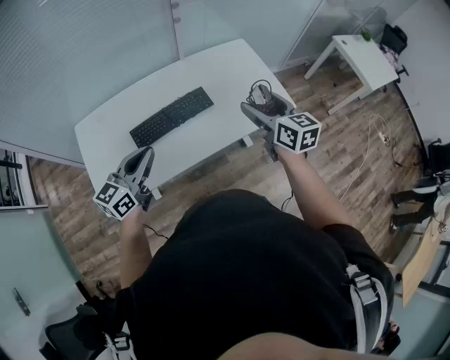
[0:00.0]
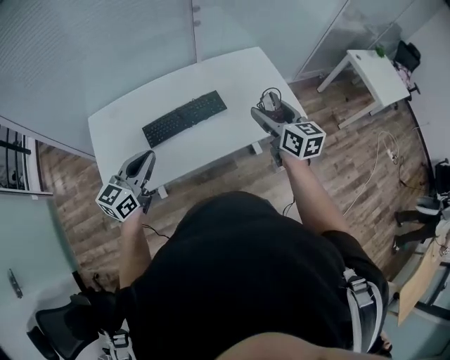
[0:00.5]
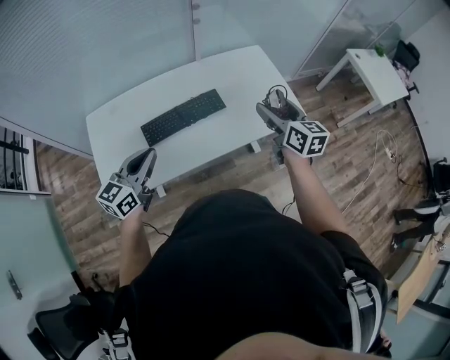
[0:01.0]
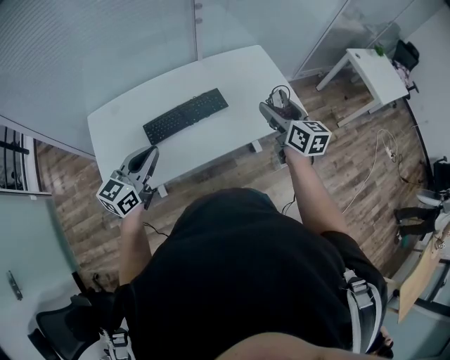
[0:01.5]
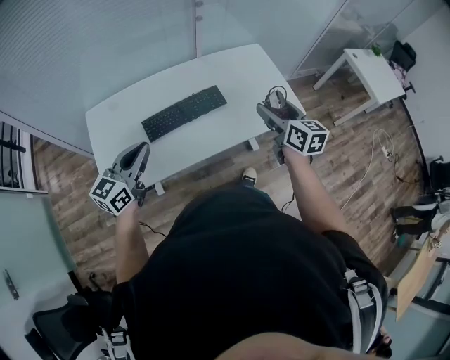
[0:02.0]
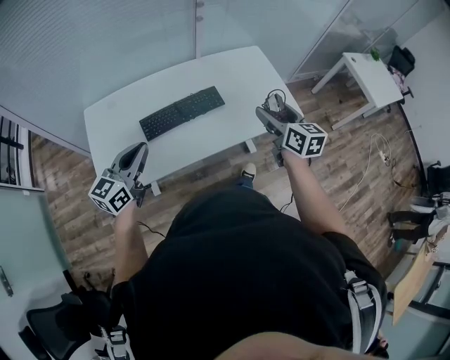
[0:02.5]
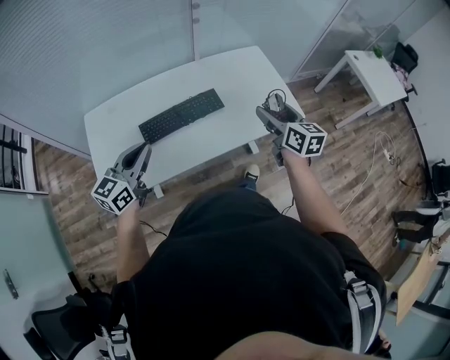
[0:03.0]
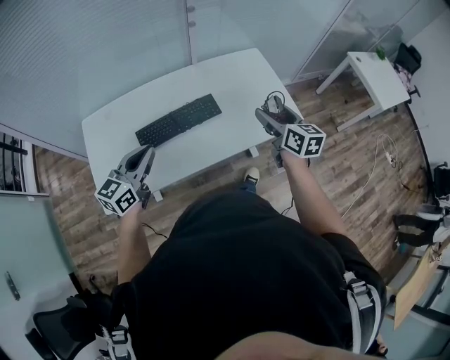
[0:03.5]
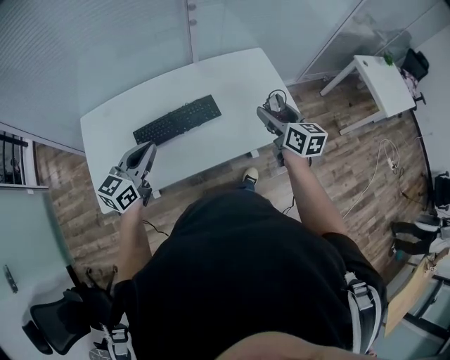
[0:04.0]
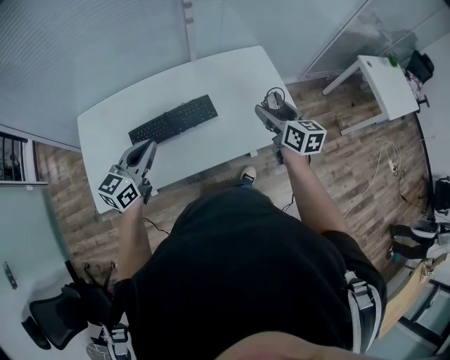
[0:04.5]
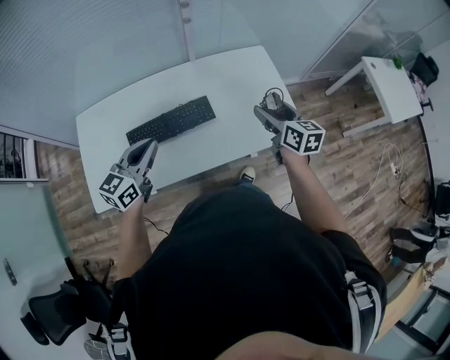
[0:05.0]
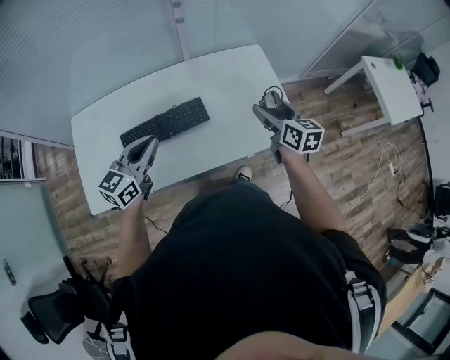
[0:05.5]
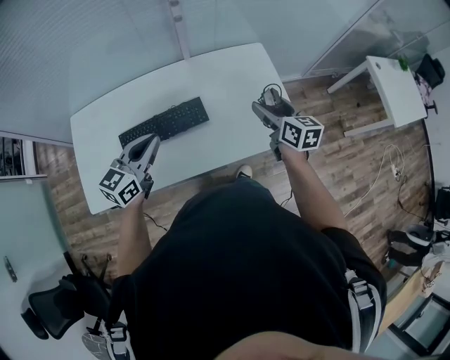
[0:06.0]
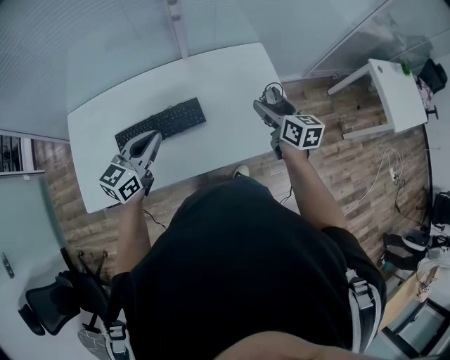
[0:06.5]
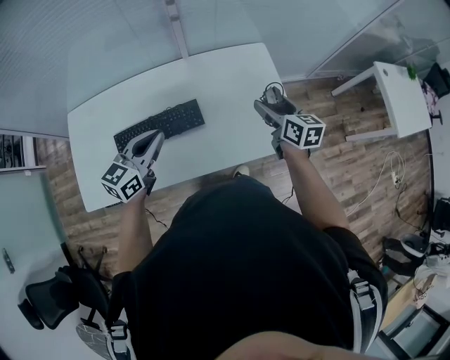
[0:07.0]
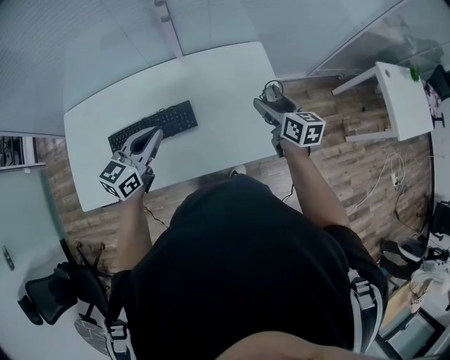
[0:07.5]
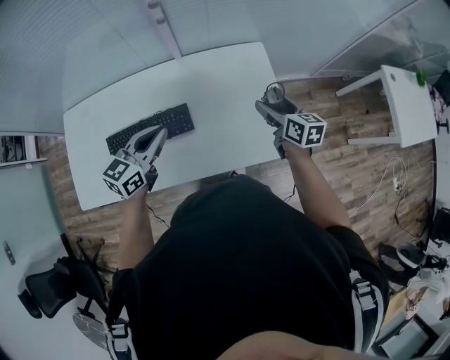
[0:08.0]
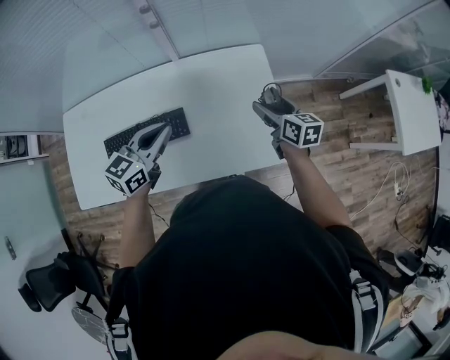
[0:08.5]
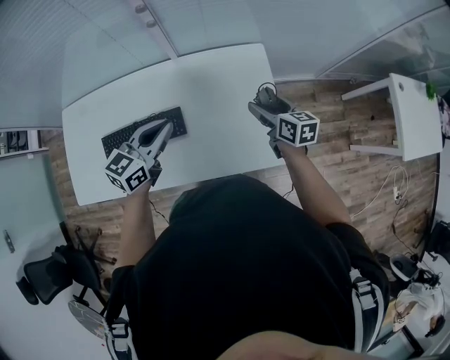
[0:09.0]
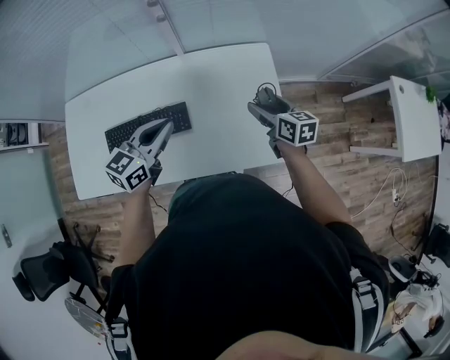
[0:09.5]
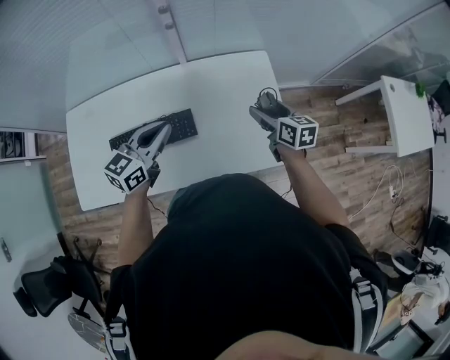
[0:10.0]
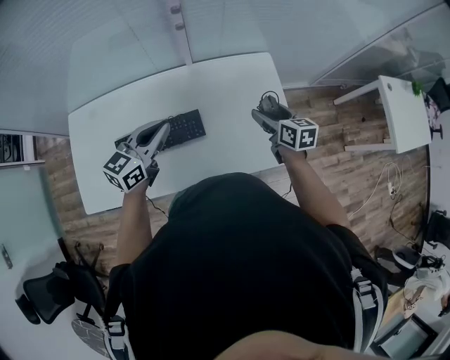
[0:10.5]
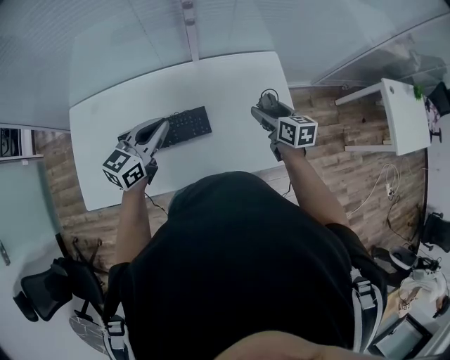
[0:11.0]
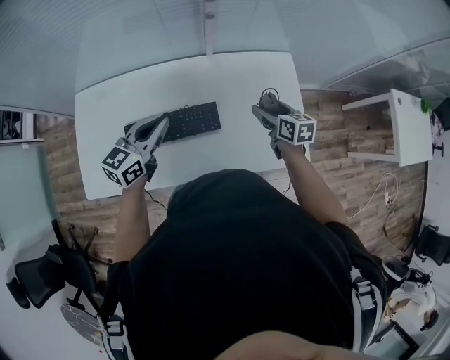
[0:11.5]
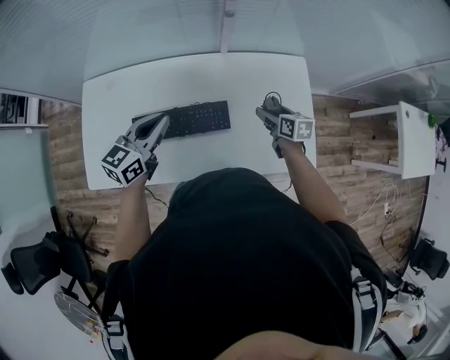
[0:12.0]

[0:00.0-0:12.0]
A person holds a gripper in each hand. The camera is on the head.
0:00.0 to 0:02.0: The left gripper travels to the left by some 5 cm.
0:02.0 to 0:04.0: The grippers both shift forward and to the right by about 10 cm.
0:04.0 to 0:06.0: The grippers both shift forward and to the right by approximately 15 cm.
0:06.0 to 0:08.0: The left gripper moves forward and to the right, about 15 cm. Meanwhile the right gripper moves forward, to the right and downward, roughly 15 cm.
0:10.0 to 0:12.0: The right gripper is displaced to the left and downward by approximately 15 cm, while the left gripper is displaced to the left by roughly 15 cm.

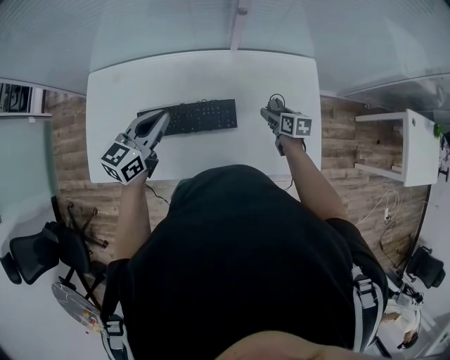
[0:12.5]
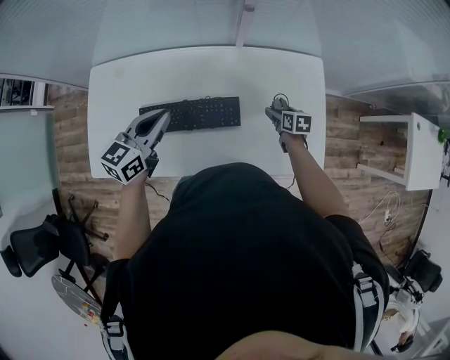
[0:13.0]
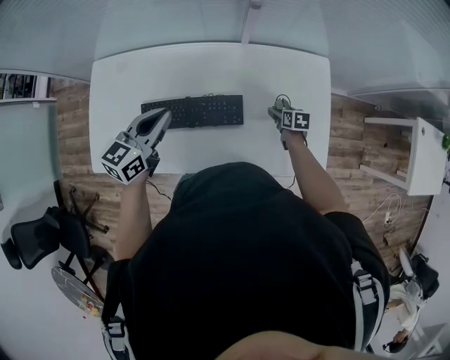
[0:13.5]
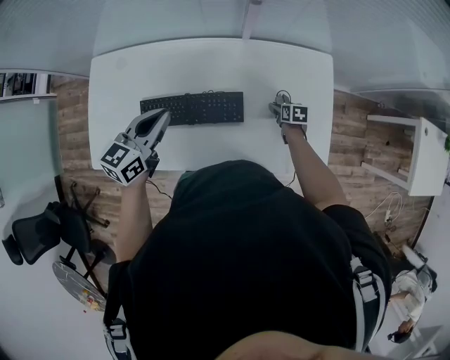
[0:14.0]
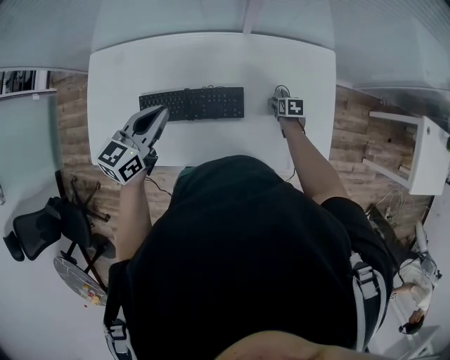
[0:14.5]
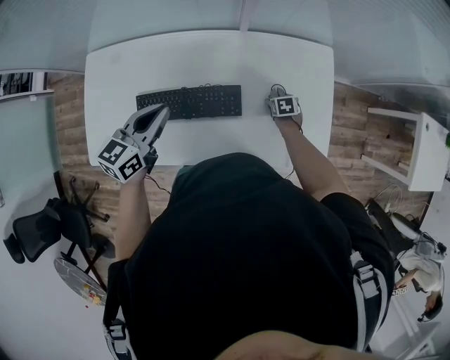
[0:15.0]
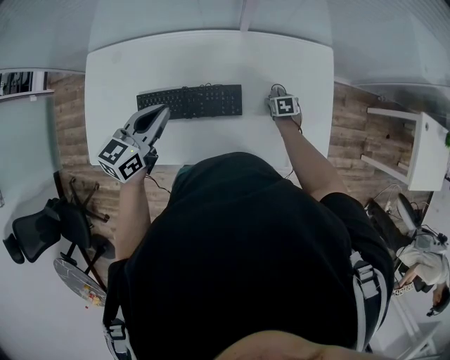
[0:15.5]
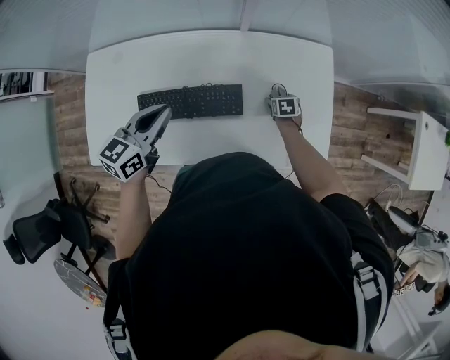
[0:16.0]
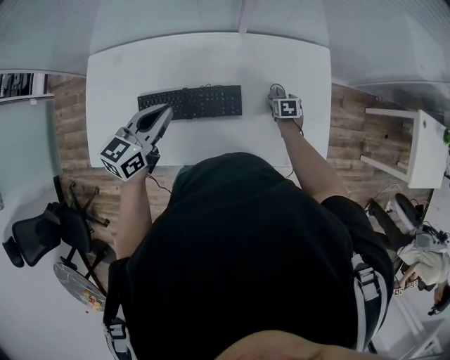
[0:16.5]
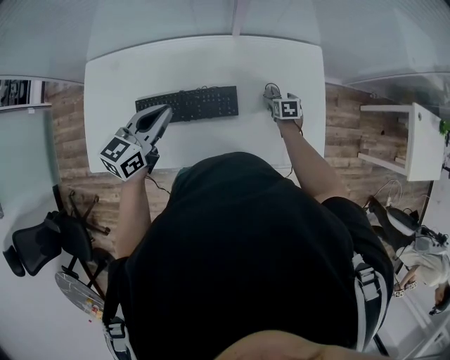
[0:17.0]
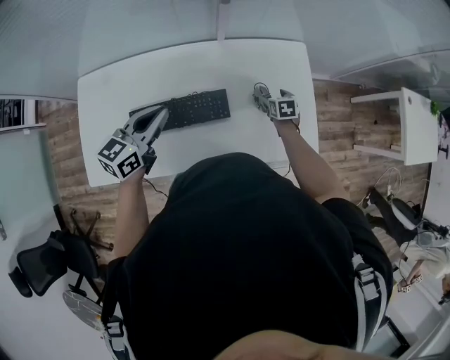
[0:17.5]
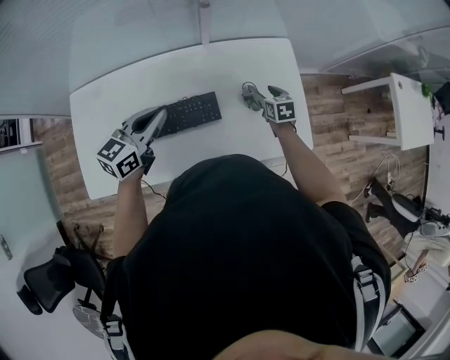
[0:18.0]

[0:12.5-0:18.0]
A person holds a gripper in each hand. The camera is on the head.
0:12.5 to 0:14.5: The right gripper moves downward, roughly 15 cm.
0:14.5 to 0:16.0: There are only small adjustments of the grippers.
0:16.0 to 0:18.0: The left gripper ends up about 5 cm from where it was, while the right gripper goes some 15 cm upward, and rotates some 20 degrees.

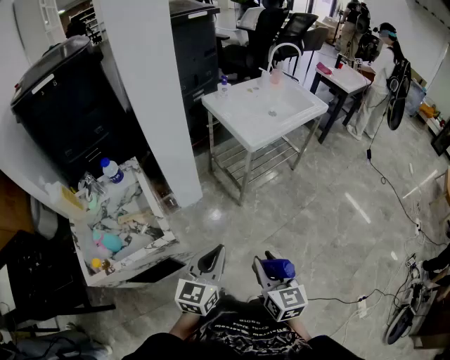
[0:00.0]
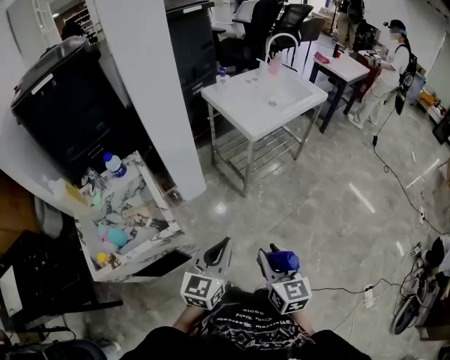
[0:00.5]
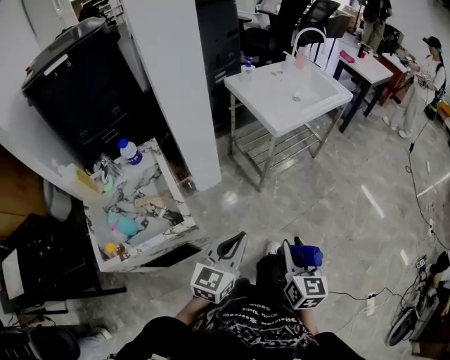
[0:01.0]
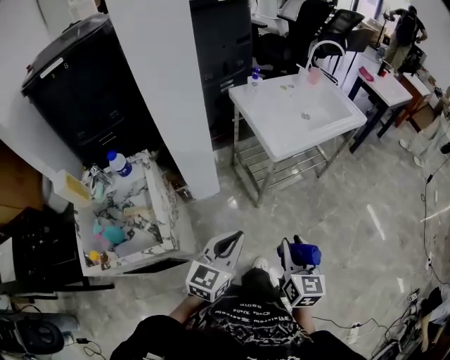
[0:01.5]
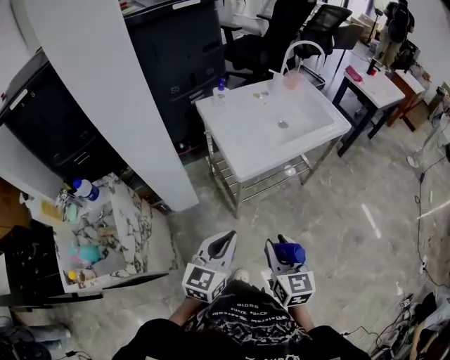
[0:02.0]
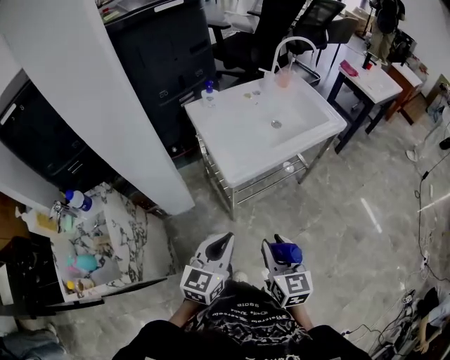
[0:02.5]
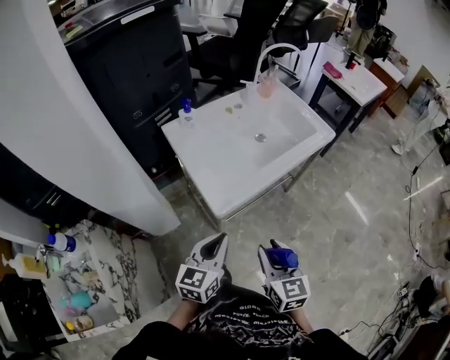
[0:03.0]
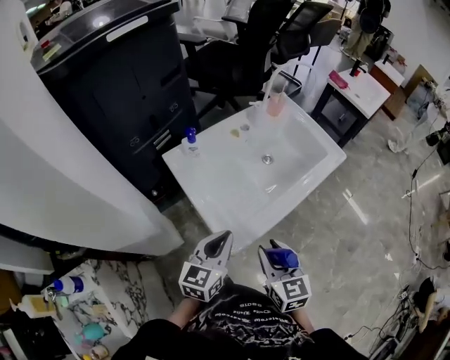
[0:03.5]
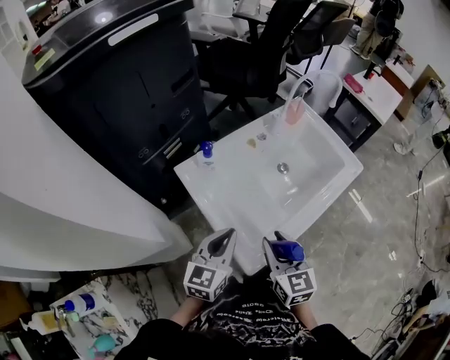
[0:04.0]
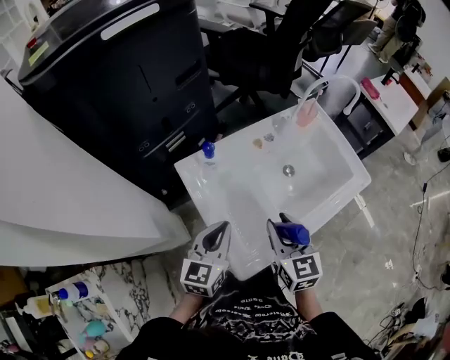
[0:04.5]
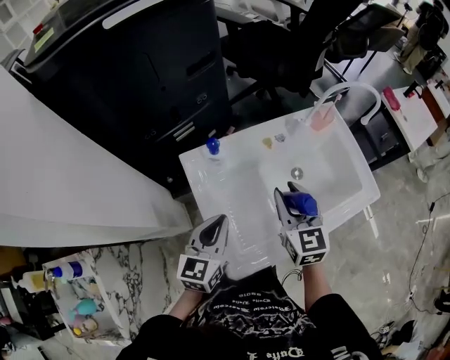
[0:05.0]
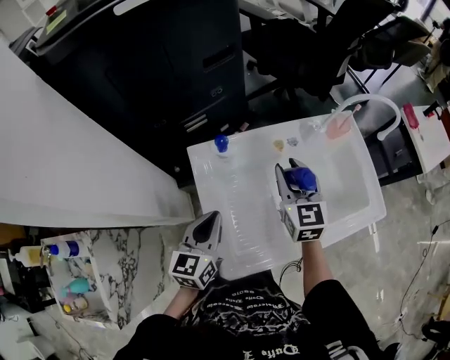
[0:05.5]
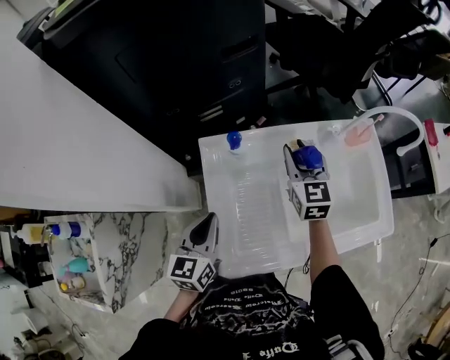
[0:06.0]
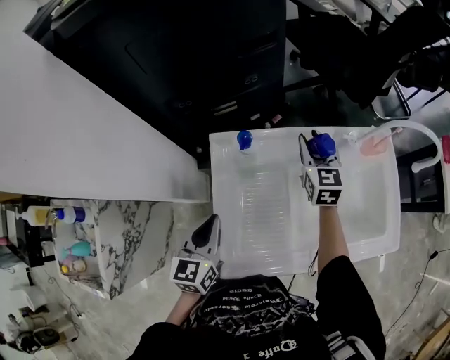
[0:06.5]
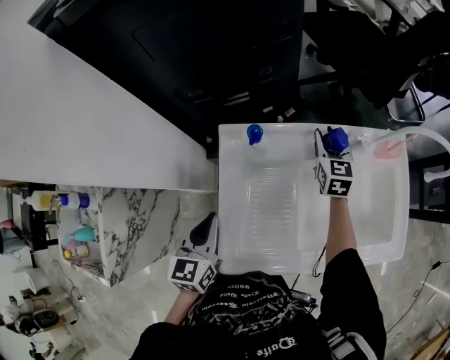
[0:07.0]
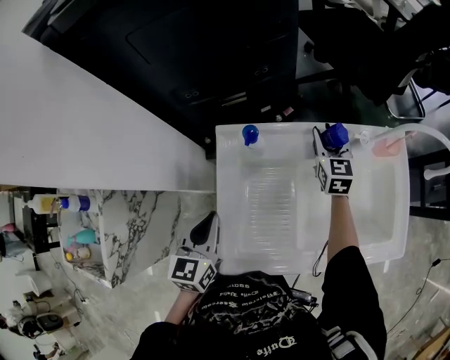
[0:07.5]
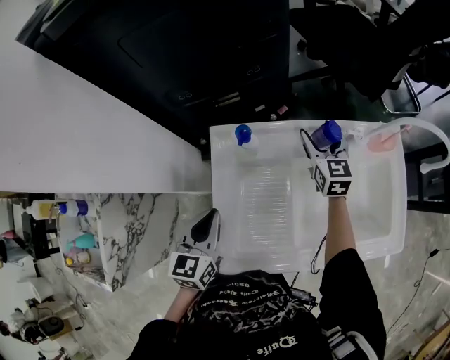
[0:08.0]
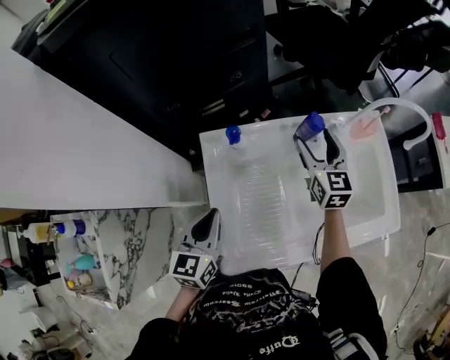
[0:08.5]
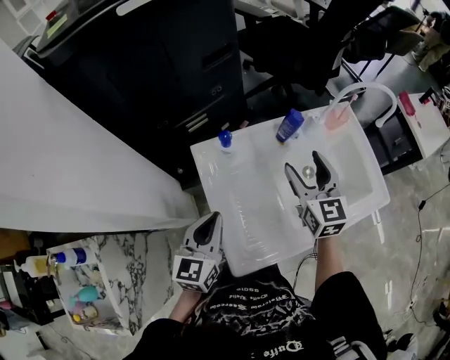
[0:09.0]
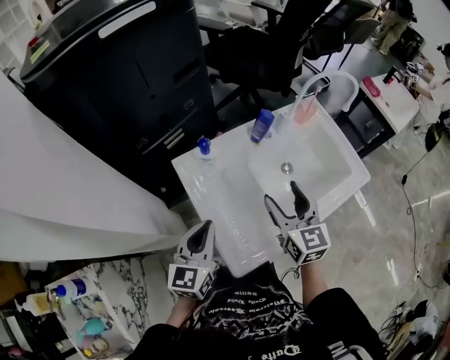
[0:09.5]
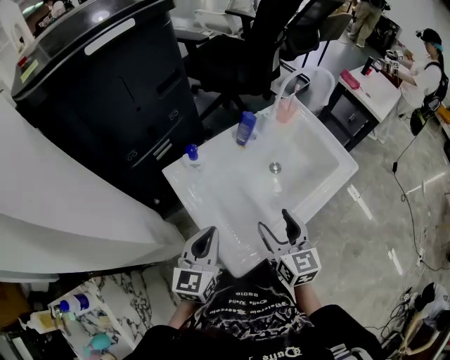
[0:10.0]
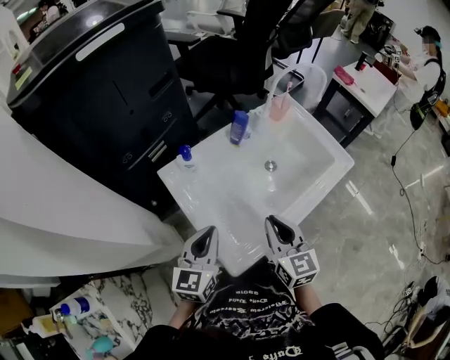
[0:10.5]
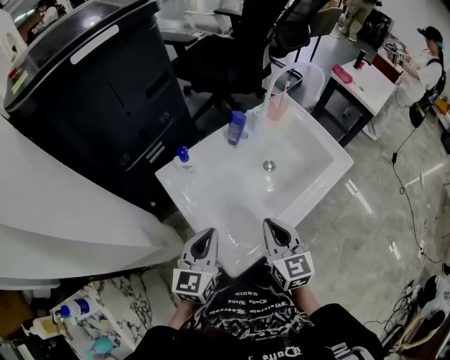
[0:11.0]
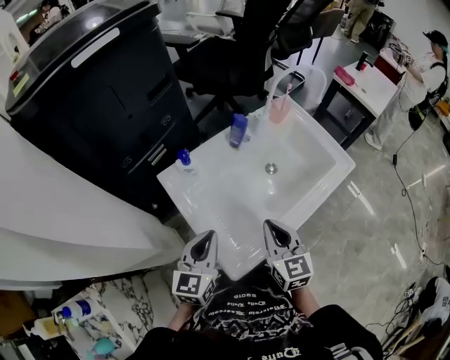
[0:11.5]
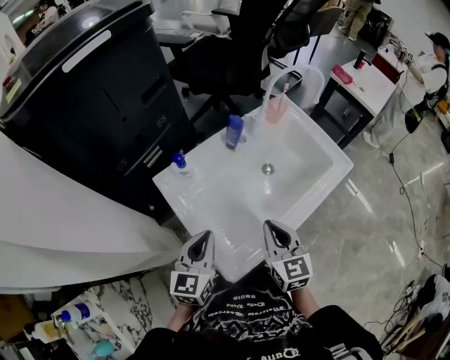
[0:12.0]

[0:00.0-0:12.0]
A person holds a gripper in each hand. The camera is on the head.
0:00.0 to 0:02.0: The grippers both shift forward and to the right by approximately 30 cm.
0:02.0 to 0:04.0: Both grippers travel together forward, roughly 35 cm.
0:04.0 to 0:06.0: The left gripper changes place by roughly 10 cm, and rotates roughly 40 degrees. Meanwhile the right gripper ends up approximately 35 cm from where it was, and turns by about 20 degrees.
0:06.0 to 0:08.0: The right gripper heads forward and downward, covering some 10 cm, and opens its fingers.
0:08.0 to 0:10.0: The left gripper ends up about 5 cm from where it was, and changes its angle by about 40 degrees; the right gripper changes place by some 35 cm, and swivels some 30 degrees.
0:10.0 to 0:12.0: The right gripper closes.
